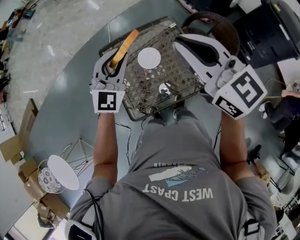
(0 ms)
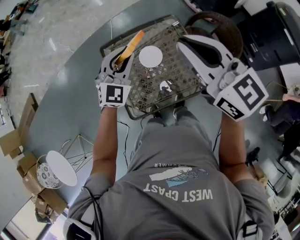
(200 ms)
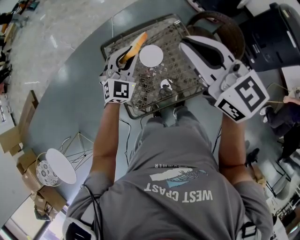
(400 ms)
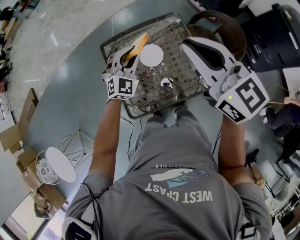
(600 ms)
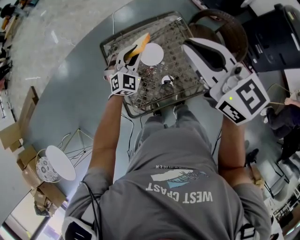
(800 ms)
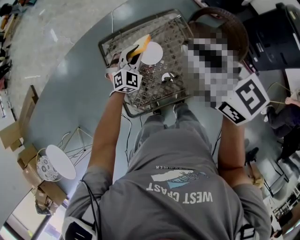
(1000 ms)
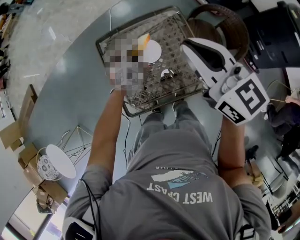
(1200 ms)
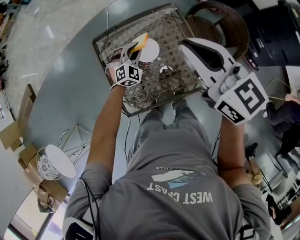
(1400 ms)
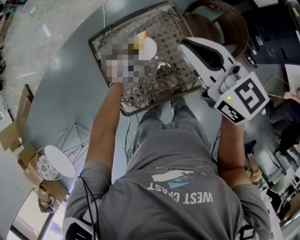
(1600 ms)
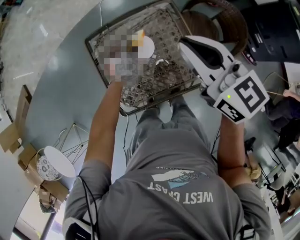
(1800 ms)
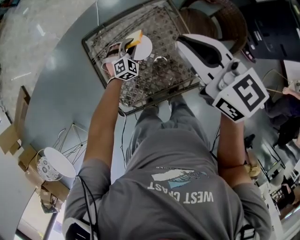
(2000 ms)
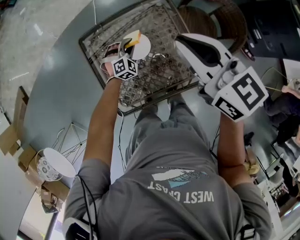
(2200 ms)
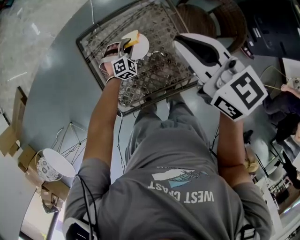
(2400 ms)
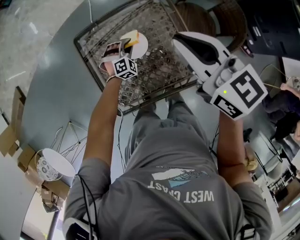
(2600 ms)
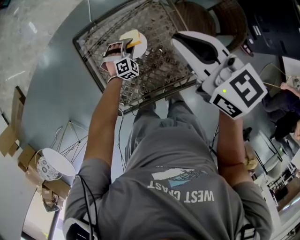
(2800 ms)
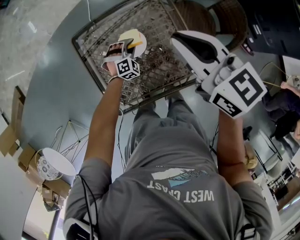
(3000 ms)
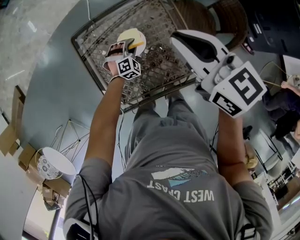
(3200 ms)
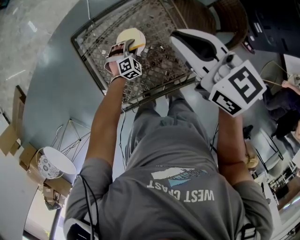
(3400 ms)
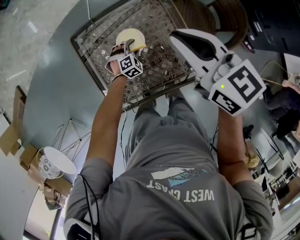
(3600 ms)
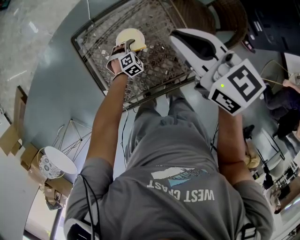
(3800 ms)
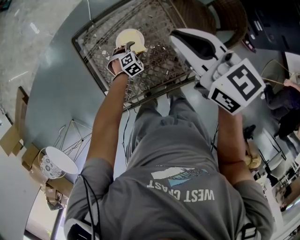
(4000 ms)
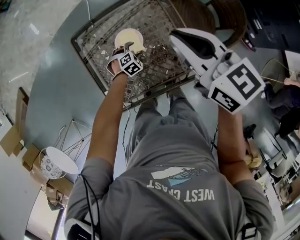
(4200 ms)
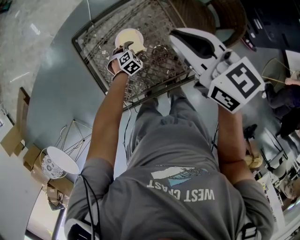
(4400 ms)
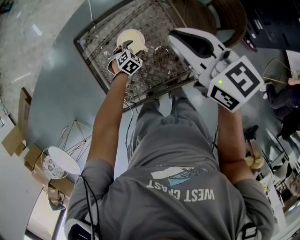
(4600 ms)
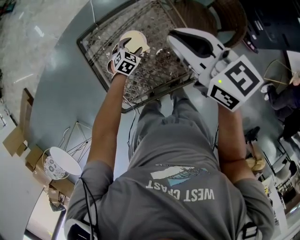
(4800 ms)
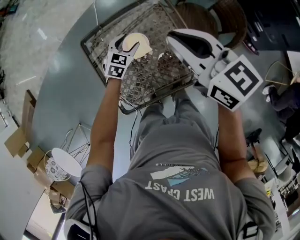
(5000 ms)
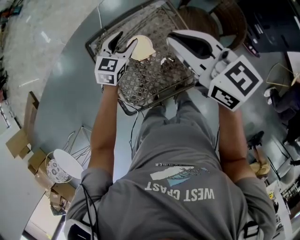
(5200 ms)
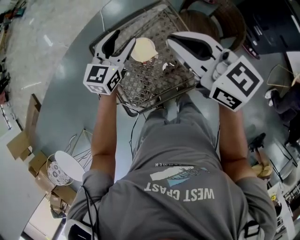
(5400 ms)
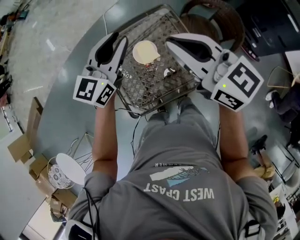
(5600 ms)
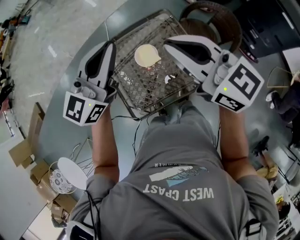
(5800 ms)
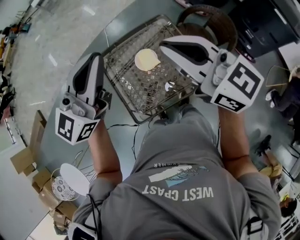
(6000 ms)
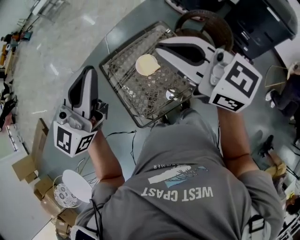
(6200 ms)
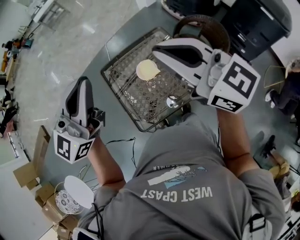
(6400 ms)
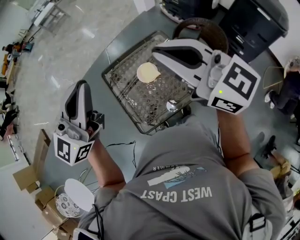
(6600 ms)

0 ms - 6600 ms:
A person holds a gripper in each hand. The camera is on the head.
0 ms - 1600 ms: The right gripper moves downward, to the right and forward, about 15 cm. Meanwhile the left gripper goes about 30 cm downward, and changes its angle by approximately 30 degrees.
1600 ms - 3200 ms: The left gripper shifts about 10 cm downward. The right gripper travels downward by approximately 5 cm.
3200 ms - 5000 ms: The left gripper travels upward by some 15 cm, turns by about 40 degrees, and opens its fingers.
5000 ms - 6600 ms: The left gripper heads upward and backward, covering roughly 60 cm, angles its fingers upward, by roughly 60 degrees, and closes. Meanwhile the right gripper goes about 25 cm upward, backward and to the left, and swivels roughly 20 degrees.

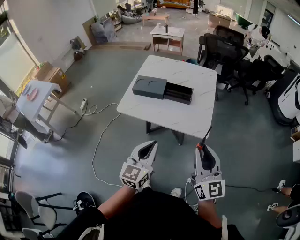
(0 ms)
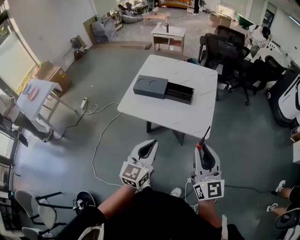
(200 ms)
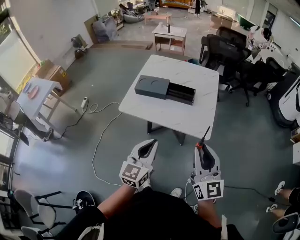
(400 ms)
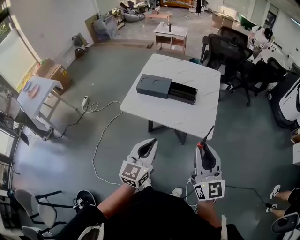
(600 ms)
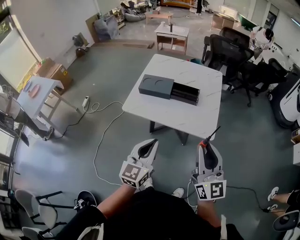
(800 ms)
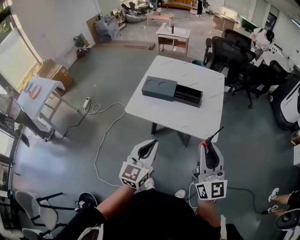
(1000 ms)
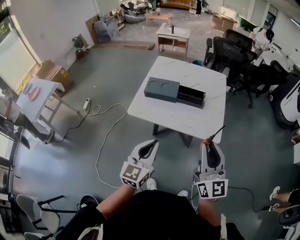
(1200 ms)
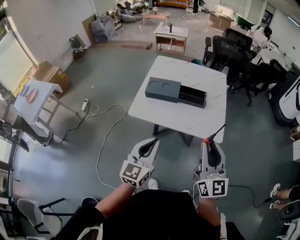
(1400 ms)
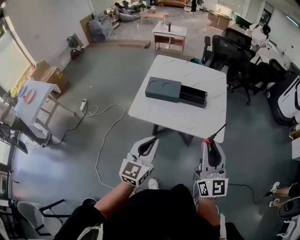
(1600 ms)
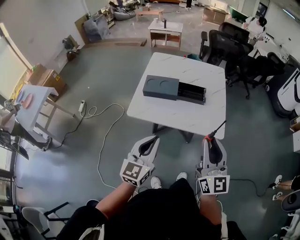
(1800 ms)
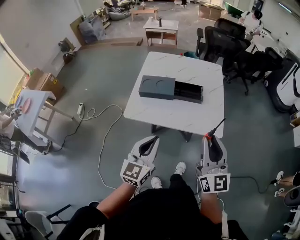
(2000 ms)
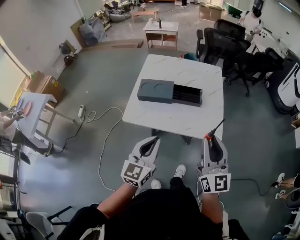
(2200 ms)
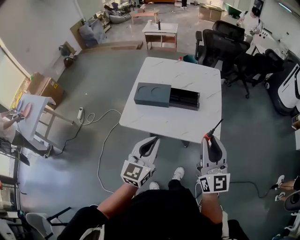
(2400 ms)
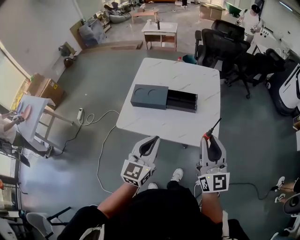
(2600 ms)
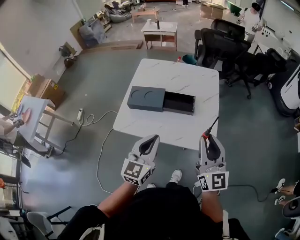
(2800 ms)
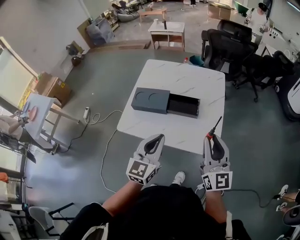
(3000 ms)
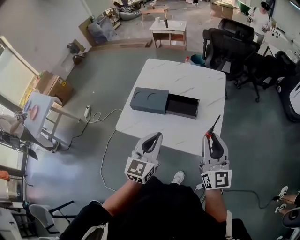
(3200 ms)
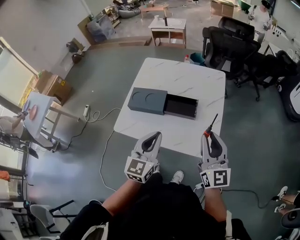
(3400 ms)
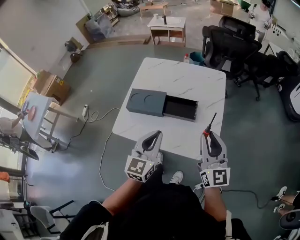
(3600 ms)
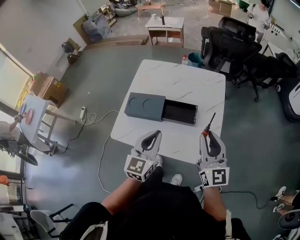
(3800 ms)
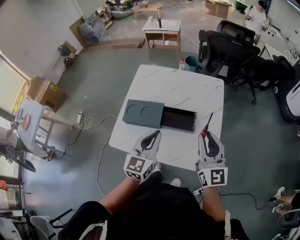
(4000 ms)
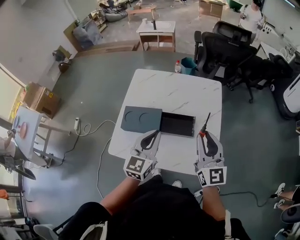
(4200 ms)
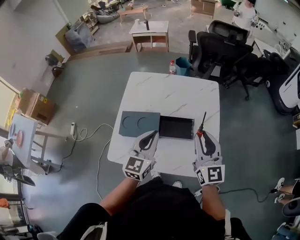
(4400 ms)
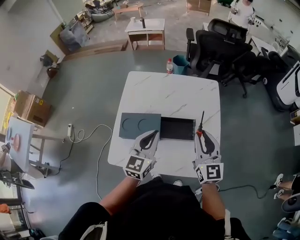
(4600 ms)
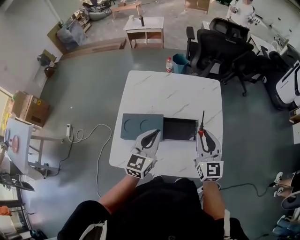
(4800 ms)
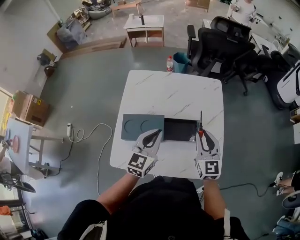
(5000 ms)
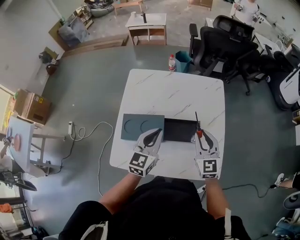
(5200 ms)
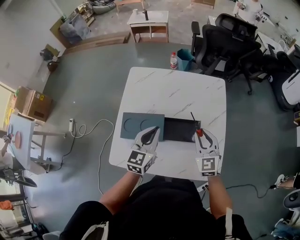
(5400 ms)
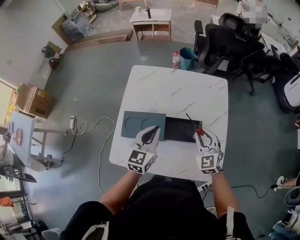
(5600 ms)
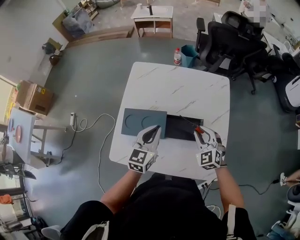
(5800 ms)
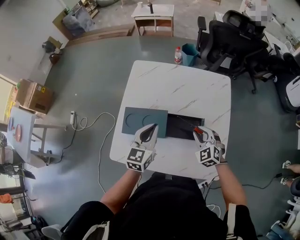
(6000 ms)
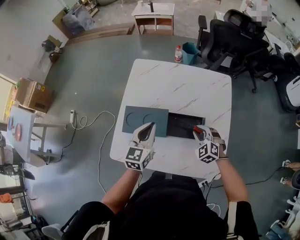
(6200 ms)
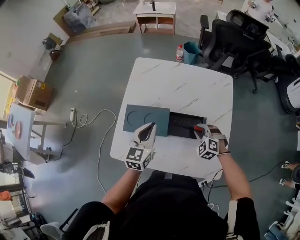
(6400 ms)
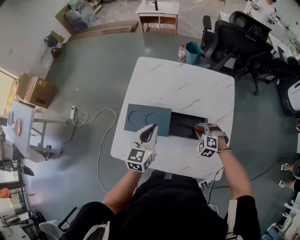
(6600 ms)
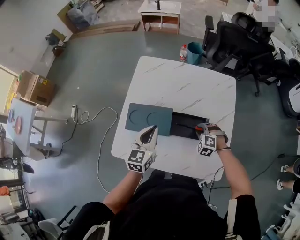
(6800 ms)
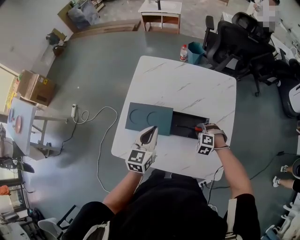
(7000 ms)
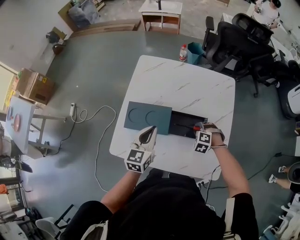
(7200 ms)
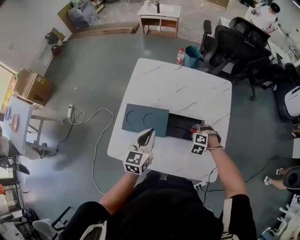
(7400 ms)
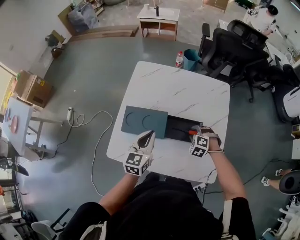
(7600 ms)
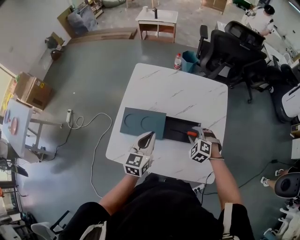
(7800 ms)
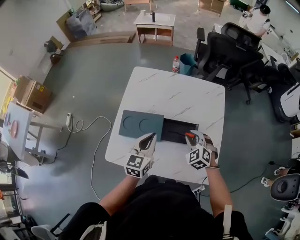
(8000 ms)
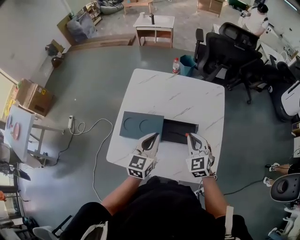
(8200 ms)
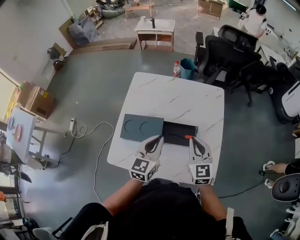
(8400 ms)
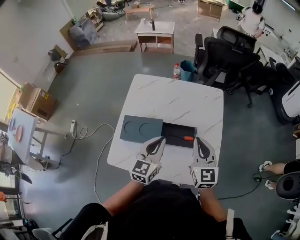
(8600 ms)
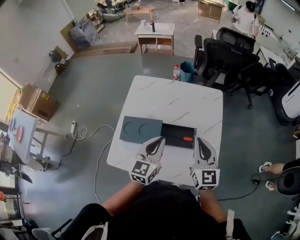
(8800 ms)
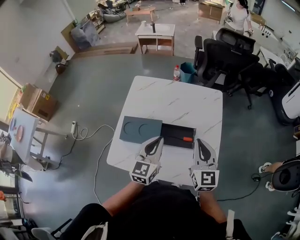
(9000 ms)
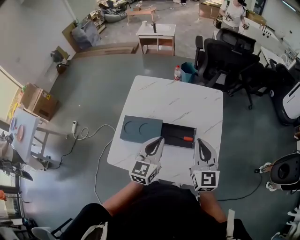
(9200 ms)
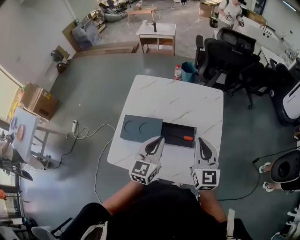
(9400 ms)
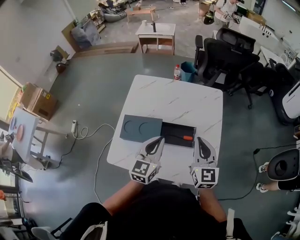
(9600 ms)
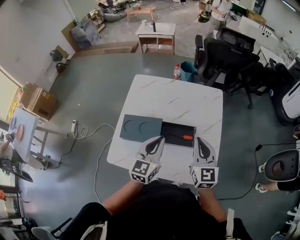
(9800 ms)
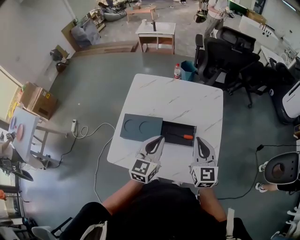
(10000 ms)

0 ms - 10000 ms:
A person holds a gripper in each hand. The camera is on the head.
0 ms - 1400 ms: The two grippers go approximately 10 cm to the left.
1400 ms - 2800 ms: The grippers both shift forward and to the right by about 15 cm.
2800 ms - 4200 ms: Both grippers travel together forward, about 20 cm.
4200 ms - 5800 ms: The right gripper shifts about 20 cm downward and forward, and tips its fingers downward by roughly 30 degrees; the left gripper travels forward, downward and to the left by approximately 15 cm.
5800 ms - 7200 ms: The right gripper heads downward, covering approximately 15 cm, and tips its fingers downward by about 40 degrees; the left gripper shifts by some 5 cm.
7200 ms - 8600 ms: The left gripper heads to the right and upward, covering approximately 10 cm. Meanwhile the right gripper shifts approximately 30 cm upward, points its fingers some 60 degrees further upward, and closes.
8600 ms - 10000 ms: The grippers make only small movements.

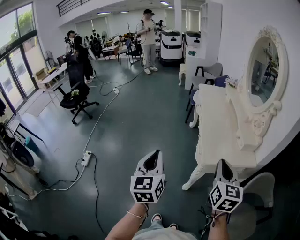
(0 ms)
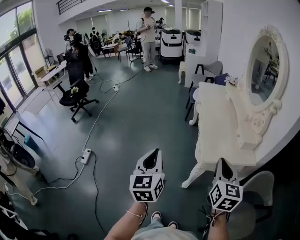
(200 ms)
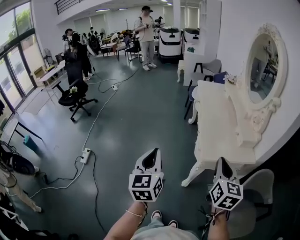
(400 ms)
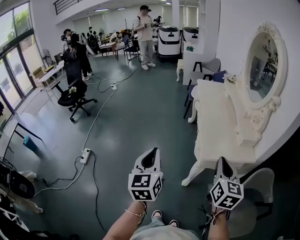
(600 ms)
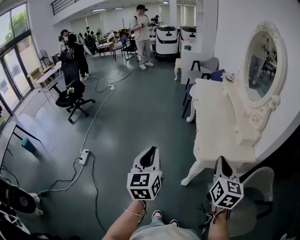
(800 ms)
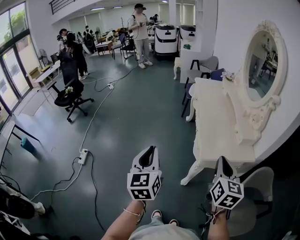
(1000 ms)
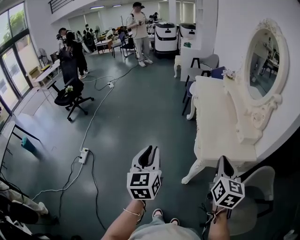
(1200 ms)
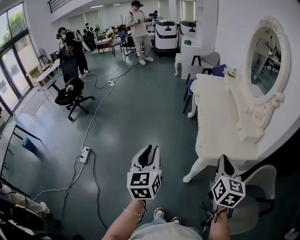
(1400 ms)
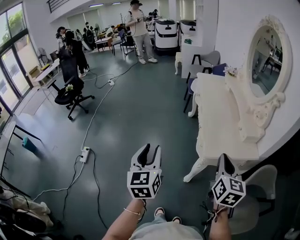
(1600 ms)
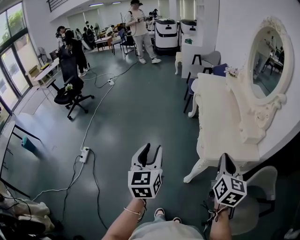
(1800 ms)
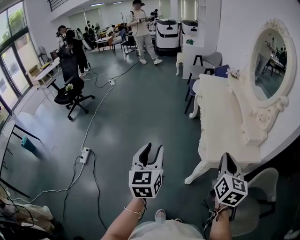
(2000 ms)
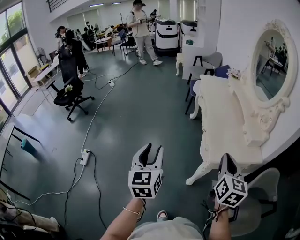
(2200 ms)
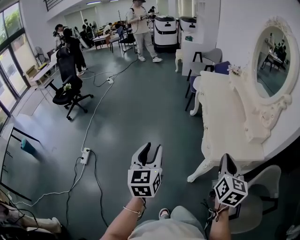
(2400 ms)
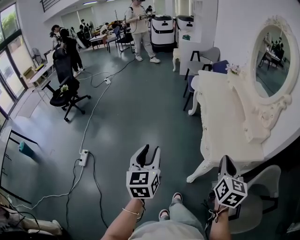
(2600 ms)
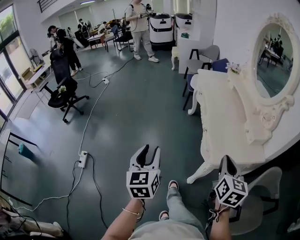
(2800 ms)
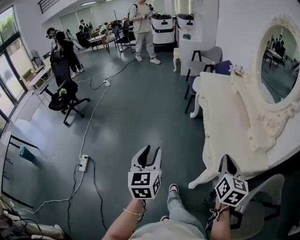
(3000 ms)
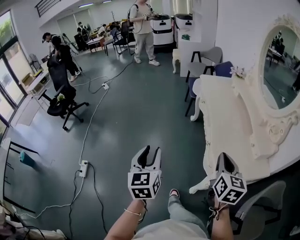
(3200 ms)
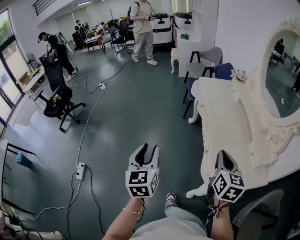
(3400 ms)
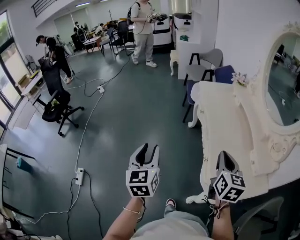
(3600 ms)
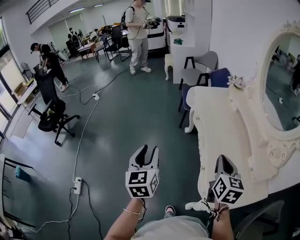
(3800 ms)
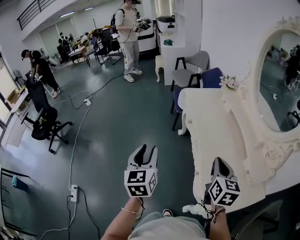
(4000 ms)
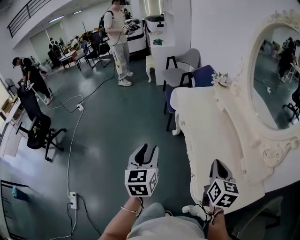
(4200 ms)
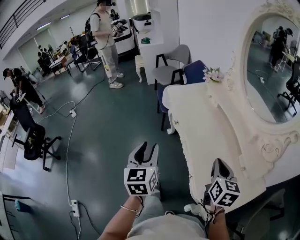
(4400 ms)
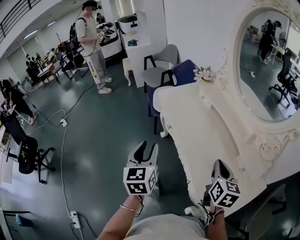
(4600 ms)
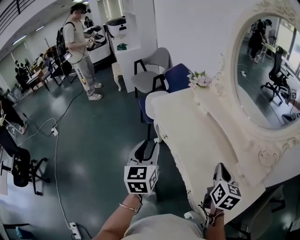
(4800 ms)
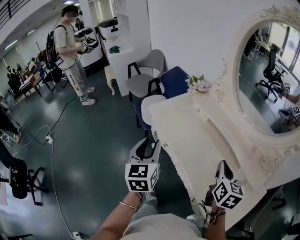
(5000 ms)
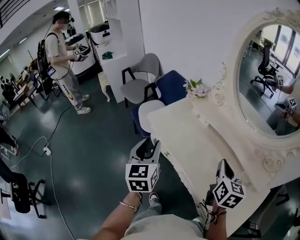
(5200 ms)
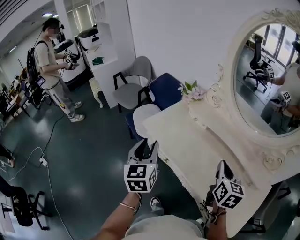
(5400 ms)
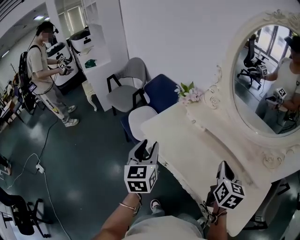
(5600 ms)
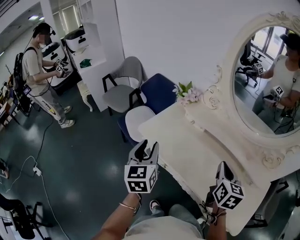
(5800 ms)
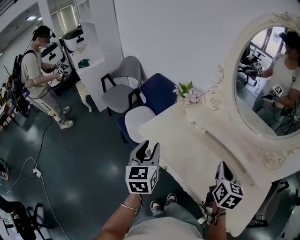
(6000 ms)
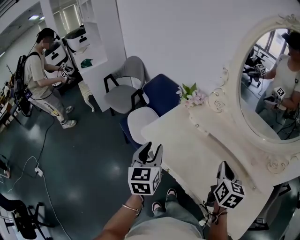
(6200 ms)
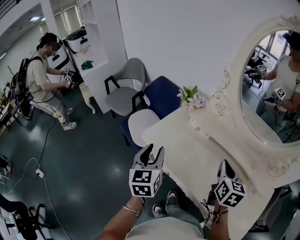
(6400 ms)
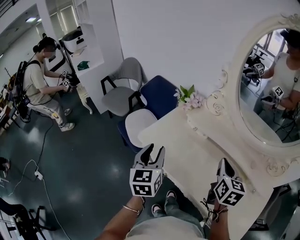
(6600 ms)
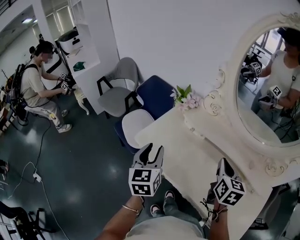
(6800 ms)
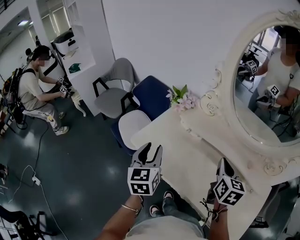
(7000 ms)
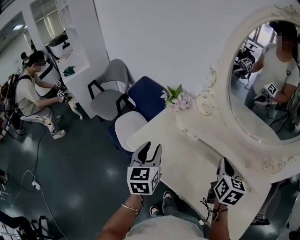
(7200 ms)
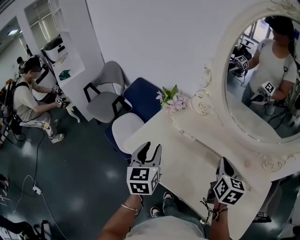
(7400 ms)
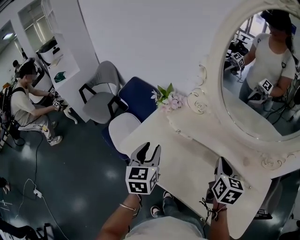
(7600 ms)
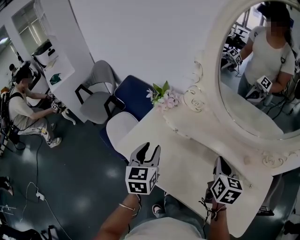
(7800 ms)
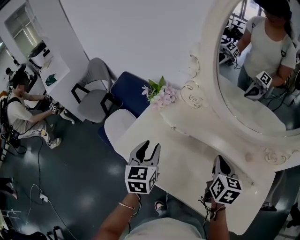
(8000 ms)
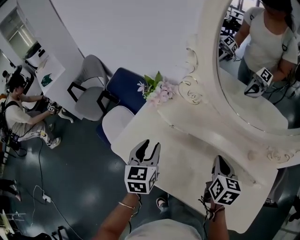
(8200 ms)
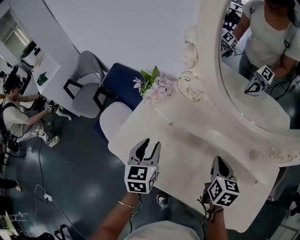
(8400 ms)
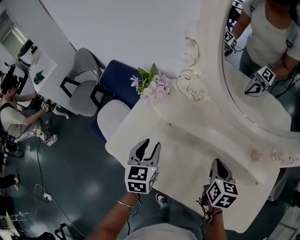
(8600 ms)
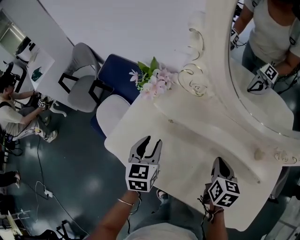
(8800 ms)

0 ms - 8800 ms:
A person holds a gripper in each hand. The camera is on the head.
0 ms - 1400 ms: The grippers move only a little.
1400 ms - 3000 ms: The right gripper shifts some 10 cm forward; the left gripper is displaced forward and to the left by approximately 15 cm.
3000 ms - 4400 ms: The grippers both shift forward by roughly 30 cm.
4400 ms - 5800 ms: The left gripper changes place by some 35 cm, and swivels approximately 30 degrees, while the right gripper moves roughly 20 cm, and rotates about 30 degrees.
5800 ms - 7400 ms: The left gripper heads forward and to the right, covering some 15 cm. Meanwhile the right gripper heads forward, covering about 10 cm.
7400 ms - 8800 ms: The right gripper moves downward, about 15 cm, while the left gripper goes some 15 cm downward and forward.
